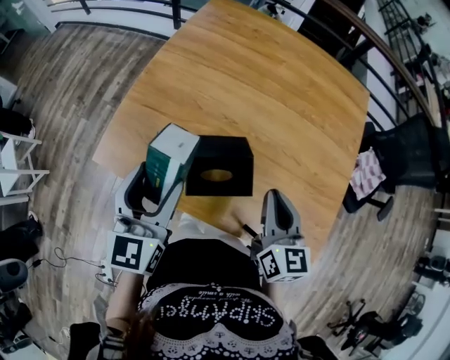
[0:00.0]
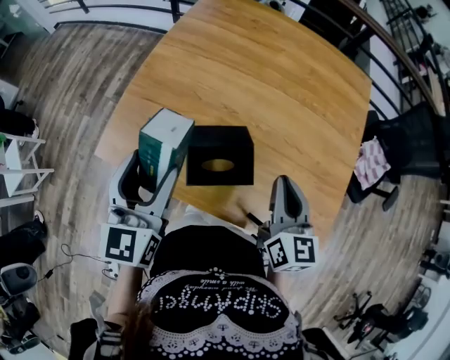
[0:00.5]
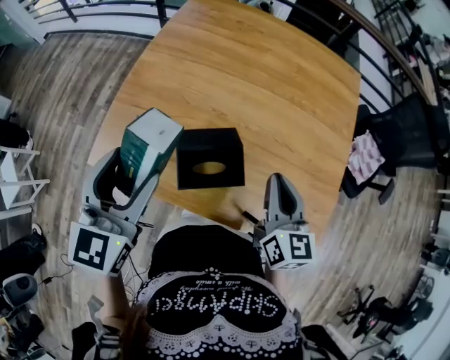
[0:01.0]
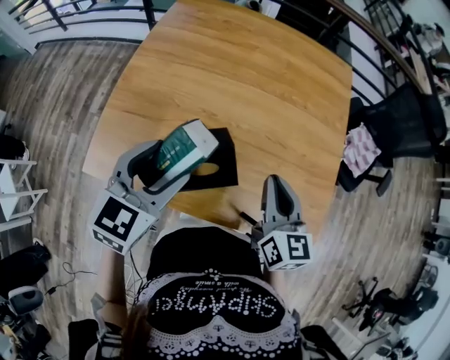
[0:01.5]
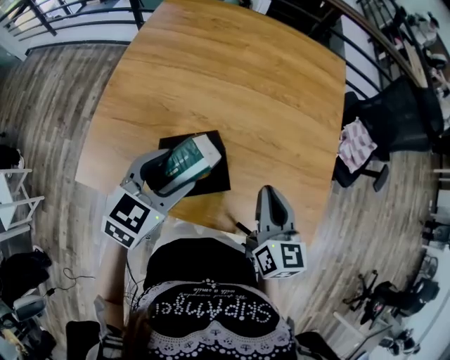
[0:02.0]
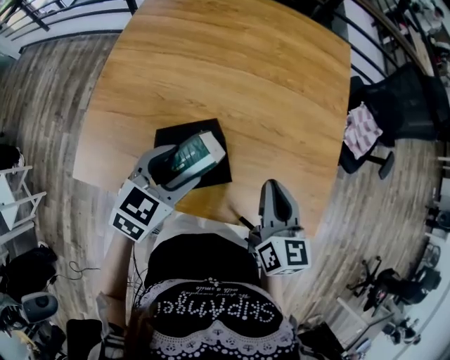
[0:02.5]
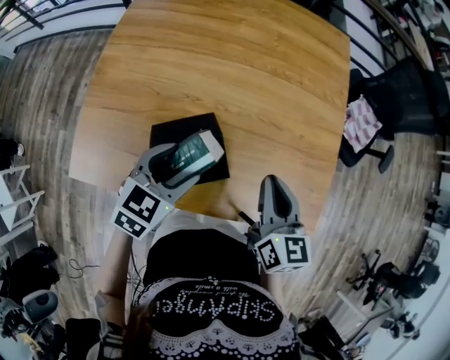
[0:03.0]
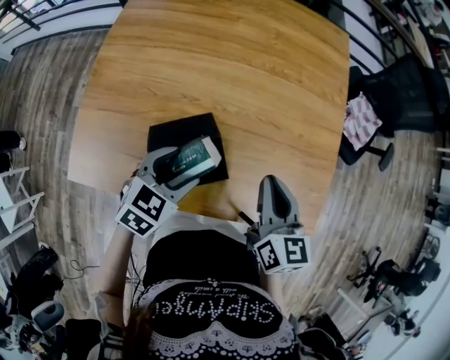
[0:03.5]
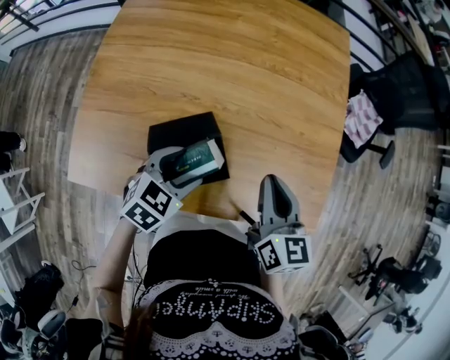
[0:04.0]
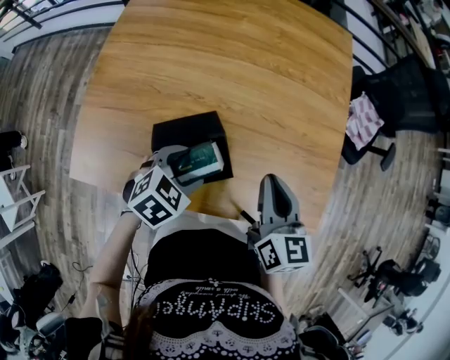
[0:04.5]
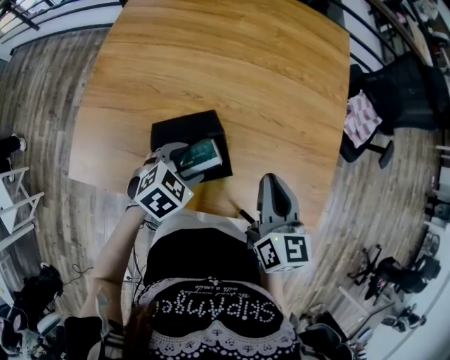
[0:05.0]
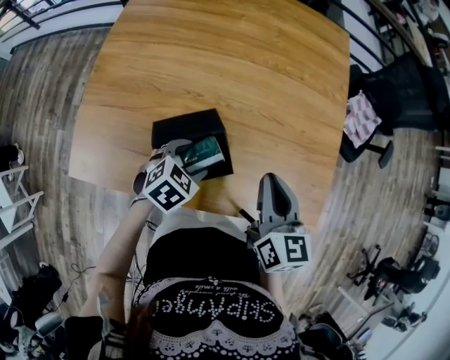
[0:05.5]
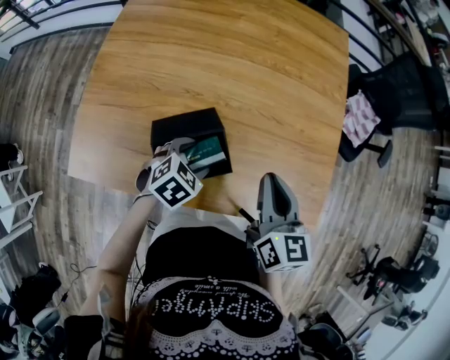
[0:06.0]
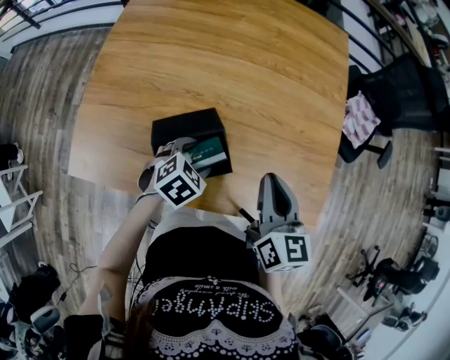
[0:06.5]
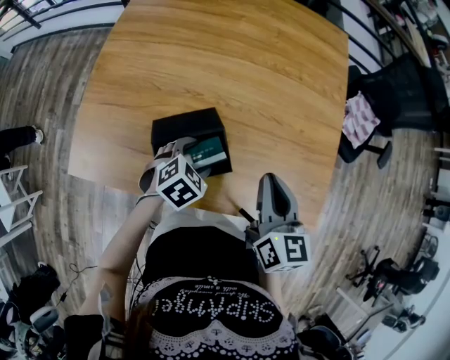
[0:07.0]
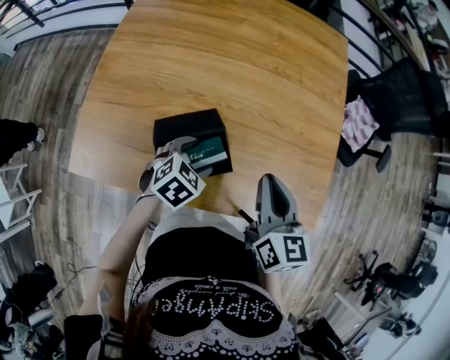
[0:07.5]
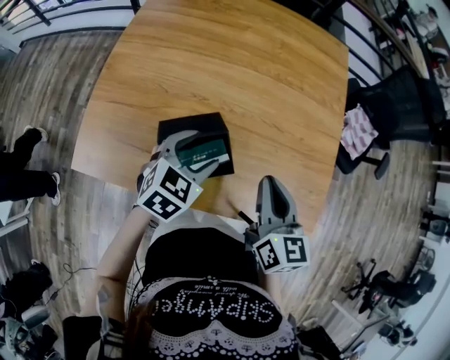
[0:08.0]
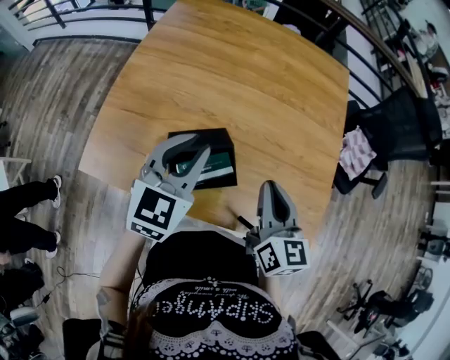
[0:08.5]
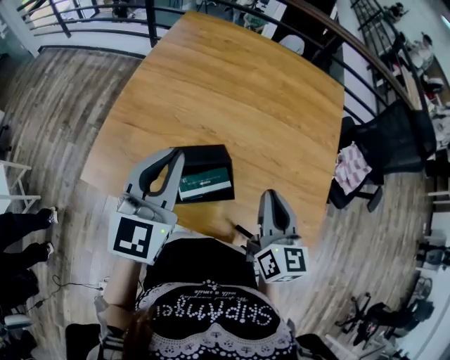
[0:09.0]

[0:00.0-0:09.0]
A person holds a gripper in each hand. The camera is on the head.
0:00.0 to 0:02.0: The right gripper goes roughly 5 cm to the right. The left gripper moves to the right, downward and forward, roughly 15 cm, and rotates approximately 40 degrees.
0:02.0 to 0:04.5: The left gripper heads downward, covering roughly 15 cm, and rotates about 30 degrees.
0:04.5 to 0:07.0: The left gripper shifts approximately 5 cm downward.
0:07.0 to 0:09.0: The right gripper changes place by some 5 cm. The left gripper moves upward, roughly 30 cm, tips its fingers upward by some 50 degrees, and closes.

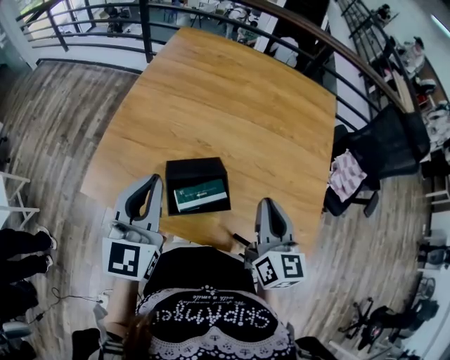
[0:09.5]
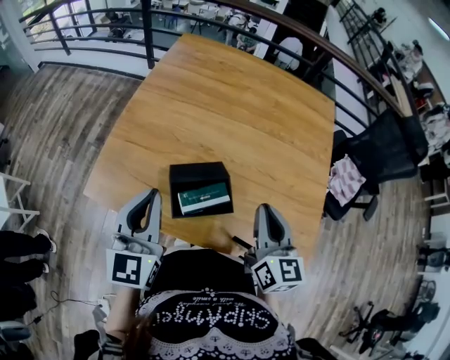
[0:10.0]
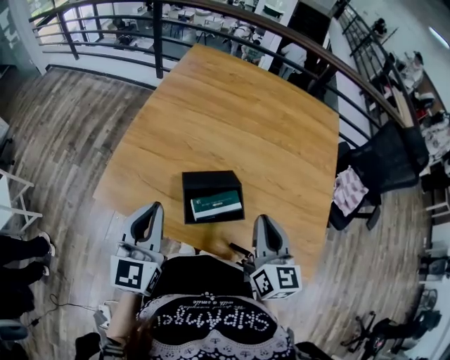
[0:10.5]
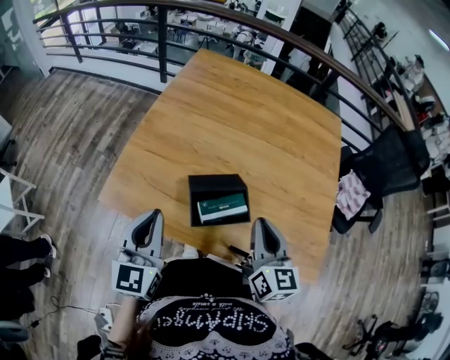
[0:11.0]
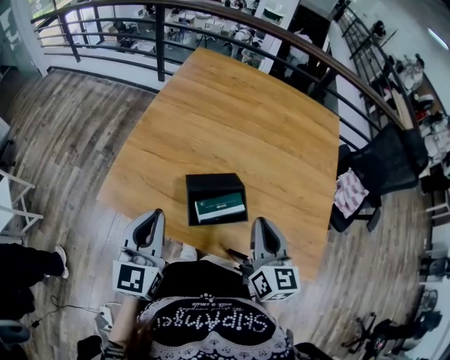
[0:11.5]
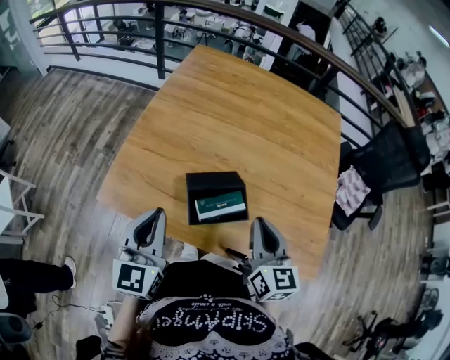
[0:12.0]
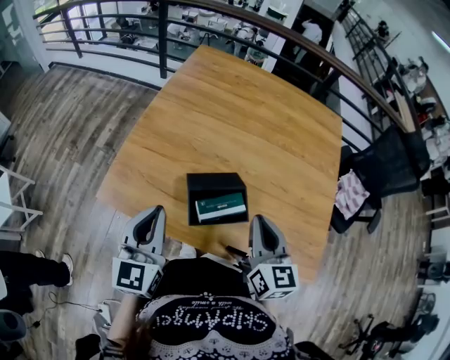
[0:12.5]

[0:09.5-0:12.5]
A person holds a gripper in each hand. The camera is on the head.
0:09.5 to 0:11.0: The left gripper moves to the left and backward, roughly 10 cm. The right gripper is displaced to the left by about 5 cm.
0:11.0 to 0:12.5: The grippers make only small movements.

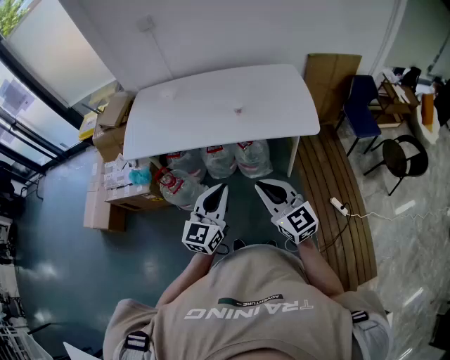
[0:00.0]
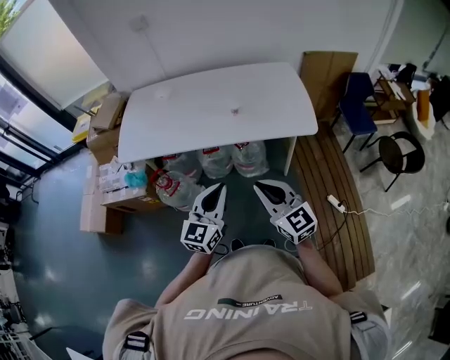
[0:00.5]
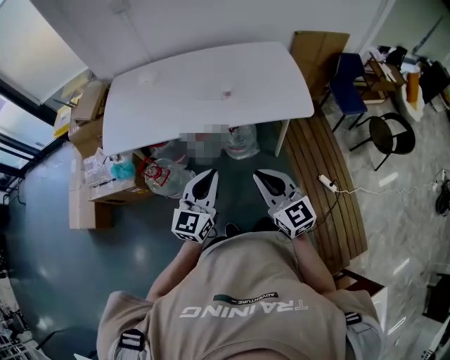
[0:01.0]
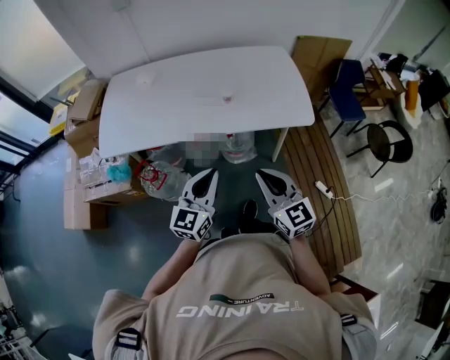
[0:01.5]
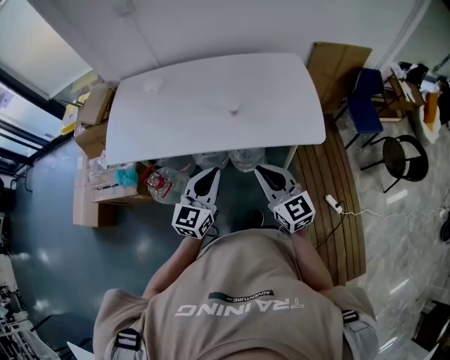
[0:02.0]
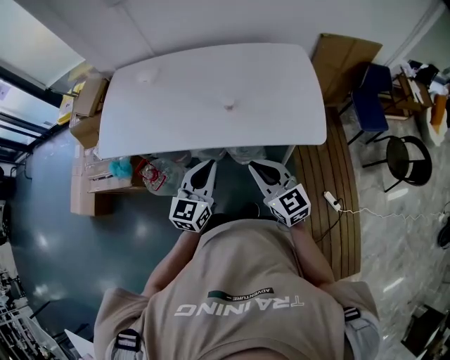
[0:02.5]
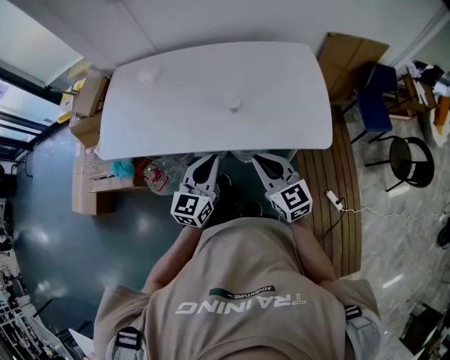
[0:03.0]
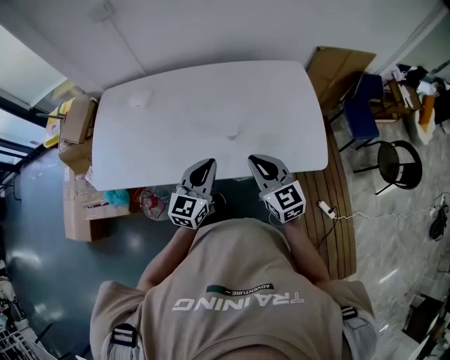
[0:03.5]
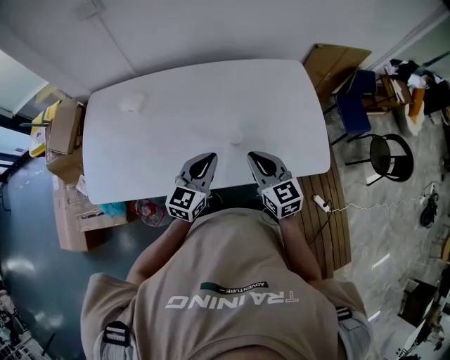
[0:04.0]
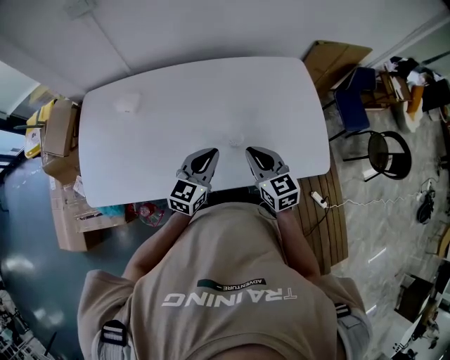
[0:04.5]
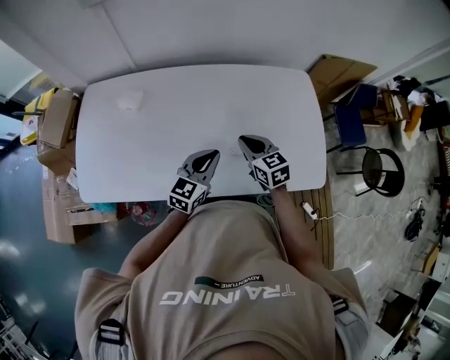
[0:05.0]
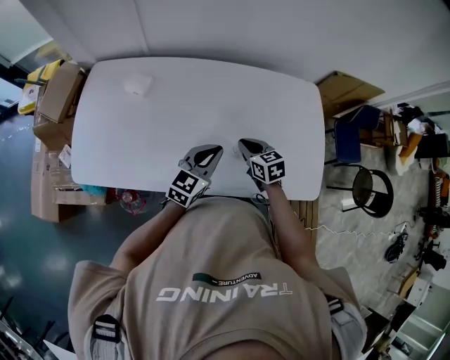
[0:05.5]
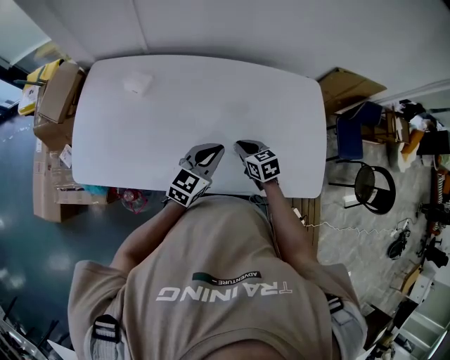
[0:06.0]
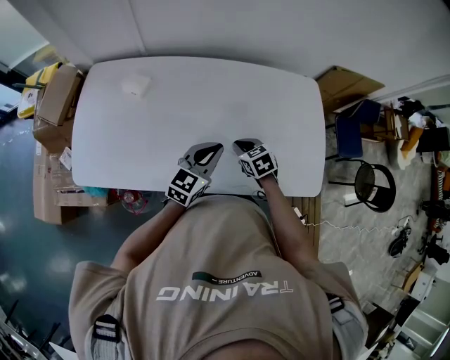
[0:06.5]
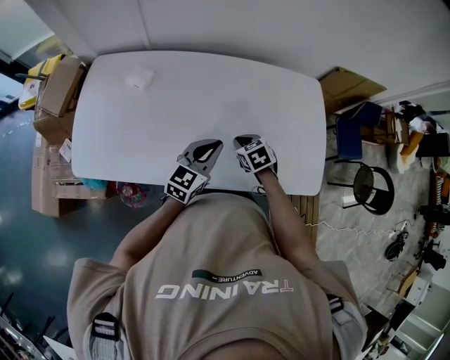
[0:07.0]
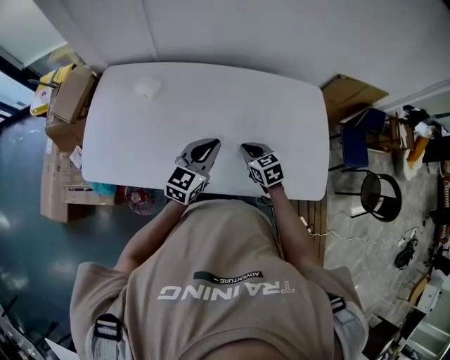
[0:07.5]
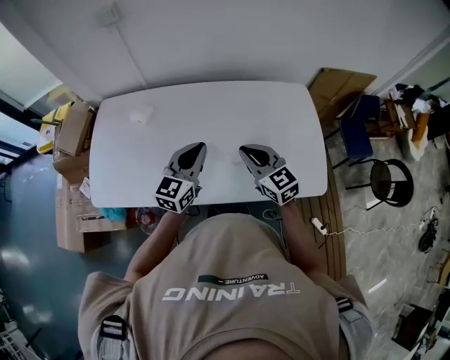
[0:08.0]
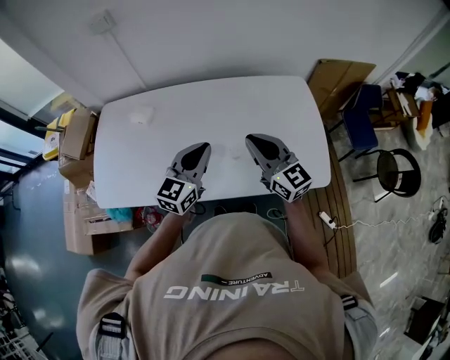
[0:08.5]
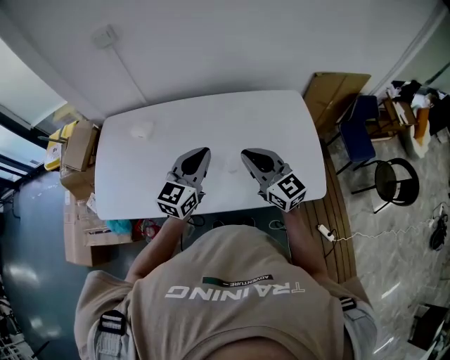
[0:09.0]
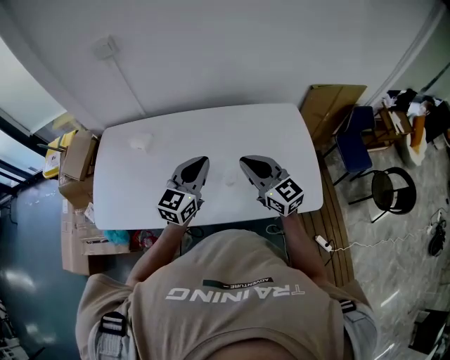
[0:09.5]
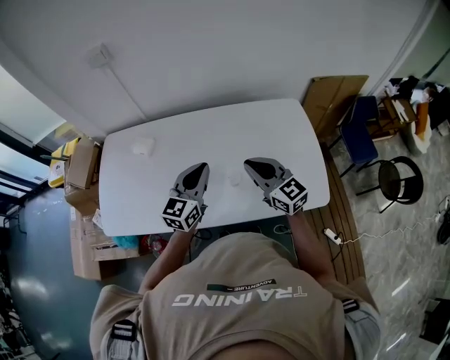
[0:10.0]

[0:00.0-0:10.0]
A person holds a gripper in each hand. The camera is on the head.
0:00.0 to 0:02.0: Both grippers move forward, about 15 cm.
0:02.0 to 0:04.0: Both grippers move forward, approximately 25 cm.
0:04.0 to 0:06.0: The right gripper goes roughly 20 cm downward and forward, and turns by some 30 degrees; the left gripper travels forward by about 5 cm.
0:06.0 to 0:08.0: The left gripper shifts some 10 cm upward. Meanwhile the right gripper travels upward by approximately 20 cm, and changes its angle by approximately 30 degrees.
0:08.0 to 0:10.0: The right gripper shifts by approximately 5 cm.

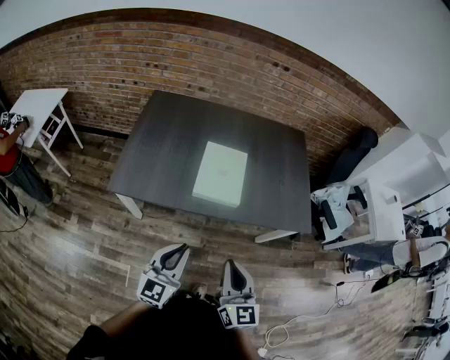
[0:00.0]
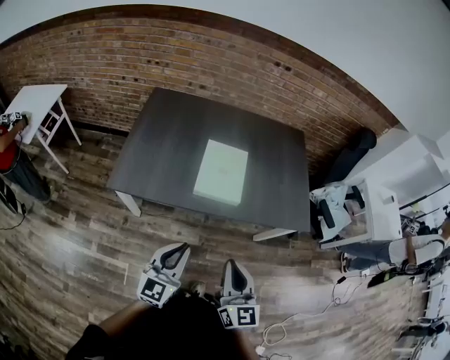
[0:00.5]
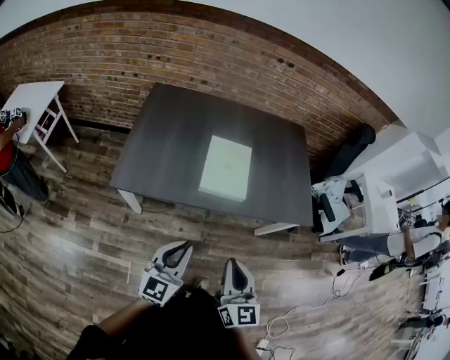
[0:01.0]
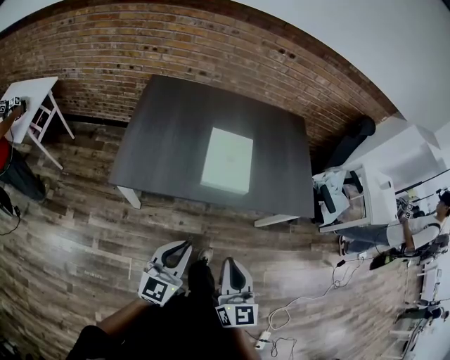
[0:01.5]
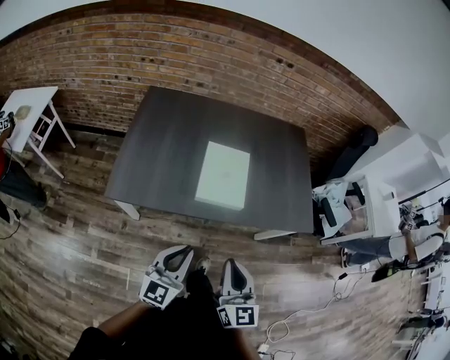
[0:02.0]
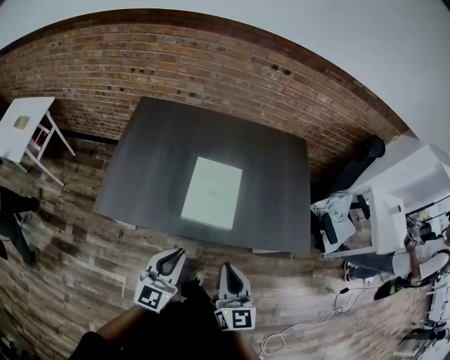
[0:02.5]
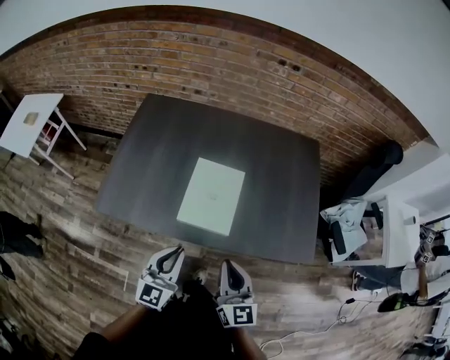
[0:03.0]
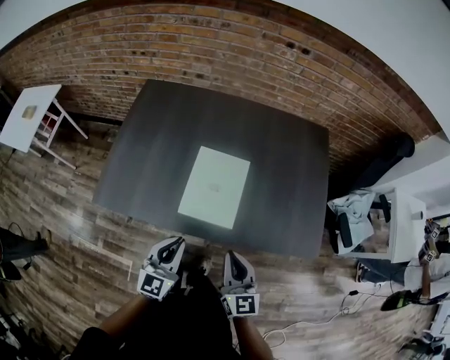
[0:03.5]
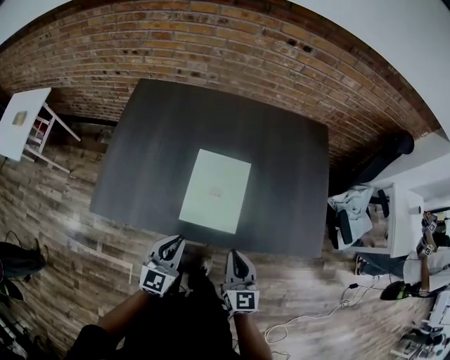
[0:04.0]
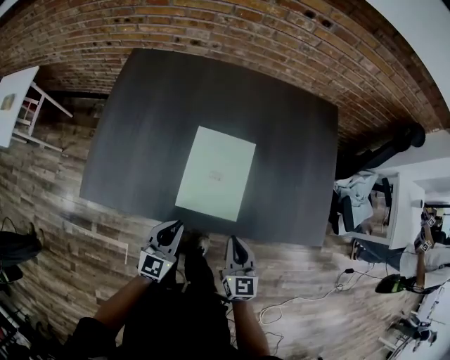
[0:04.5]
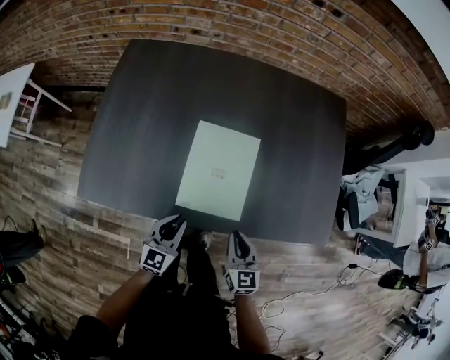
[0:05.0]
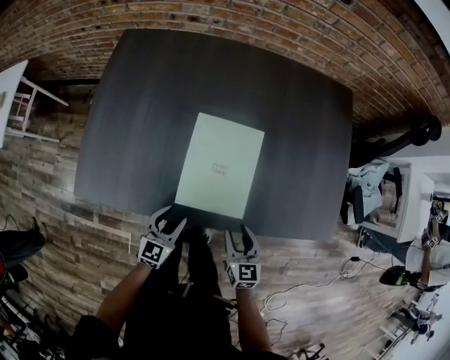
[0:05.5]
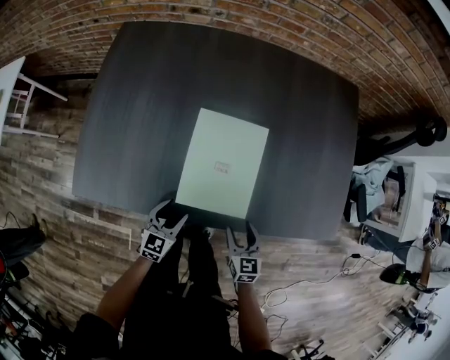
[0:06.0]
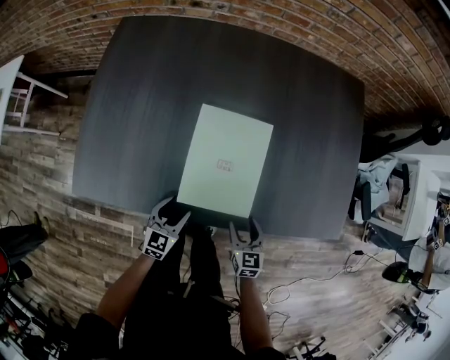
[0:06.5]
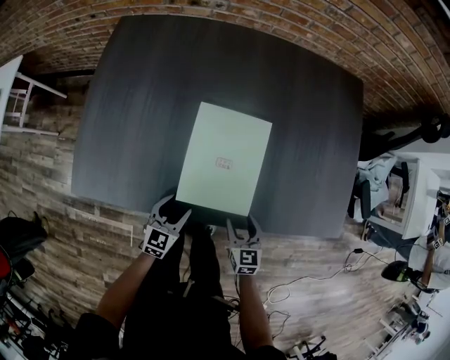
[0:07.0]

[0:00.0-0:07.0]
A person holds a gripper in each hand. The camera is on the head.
0:00.0 to 0:02.0: The left gripper shifts by some 5 cm. Meanwhile the right gripper travels to the left by approximately 5 cm.
0:02.0 to 0:03.5: The two grippers go approximately 20 cm forward and to the right.
0:03.5 to 0:05.0: The left gripper shifts approximately 20 cm downward and forward; the right gripper goes approximately 15 cm downward.
0:05.0 to 0:07.0: Both grippers travel together downward, approximately 10 cm. The left gripper opens. The right gripper opens up.
